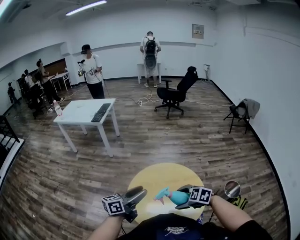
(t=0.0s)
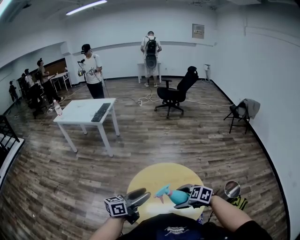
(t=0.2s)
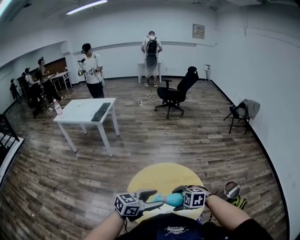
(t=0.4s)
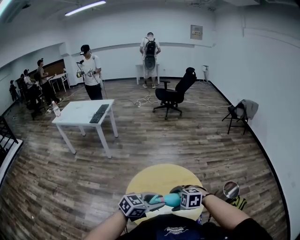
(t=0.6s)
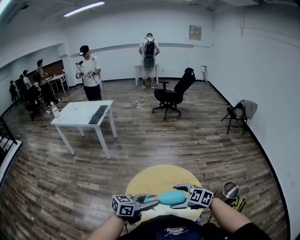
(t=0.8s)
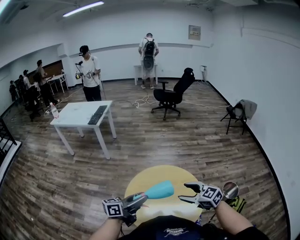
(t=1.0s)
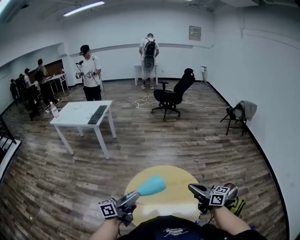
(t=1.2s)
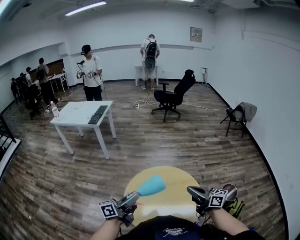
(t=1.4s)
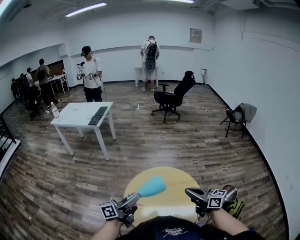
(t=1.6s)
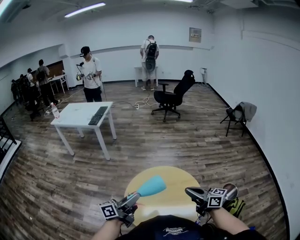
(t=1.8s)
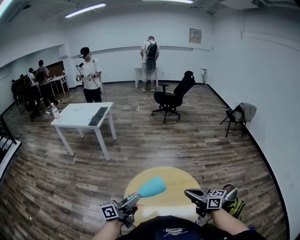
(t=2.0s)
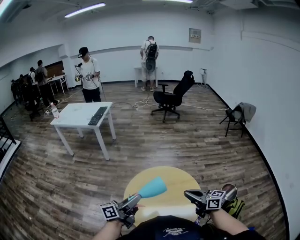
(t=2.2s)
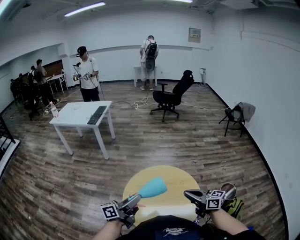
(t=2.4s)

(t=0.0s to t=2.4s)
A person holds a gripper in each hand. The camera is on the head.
t=0.0s - t=1.2s: The right gripper changes place by approximately 15 cm, tilts its fingers approximately 50 degrees upward, and closes.
t=1.2s - t=2.4s: The grippers move only a little.

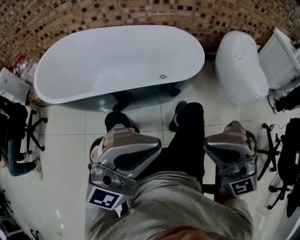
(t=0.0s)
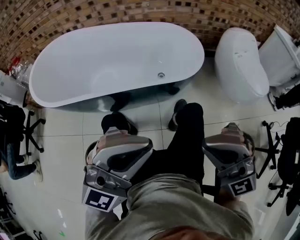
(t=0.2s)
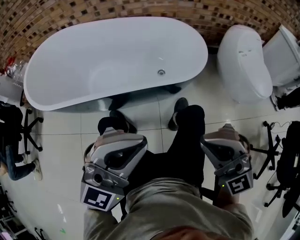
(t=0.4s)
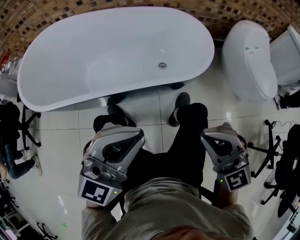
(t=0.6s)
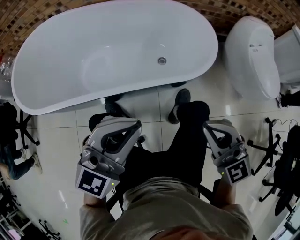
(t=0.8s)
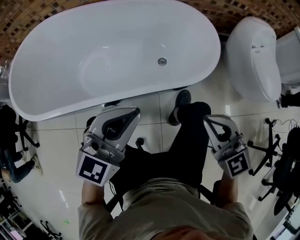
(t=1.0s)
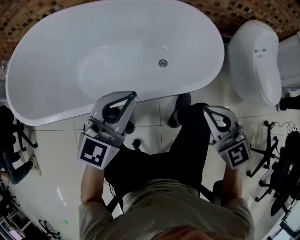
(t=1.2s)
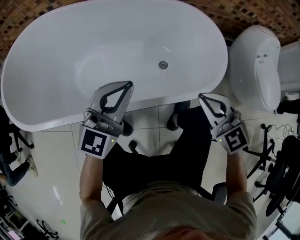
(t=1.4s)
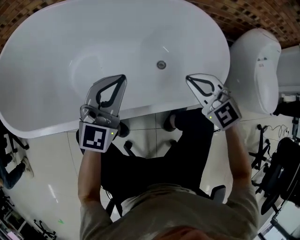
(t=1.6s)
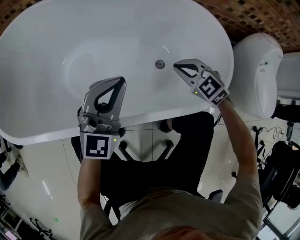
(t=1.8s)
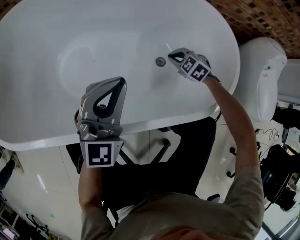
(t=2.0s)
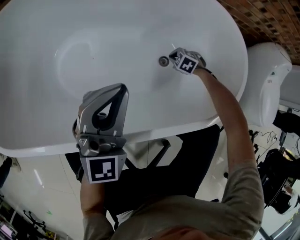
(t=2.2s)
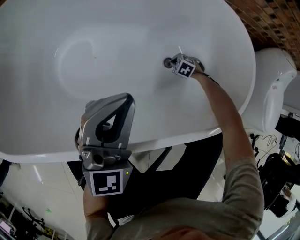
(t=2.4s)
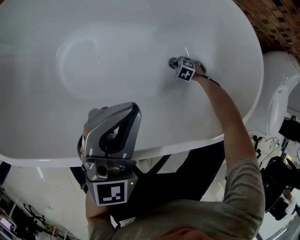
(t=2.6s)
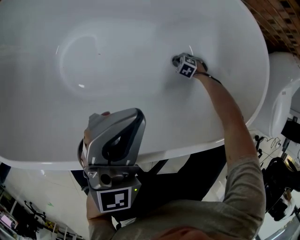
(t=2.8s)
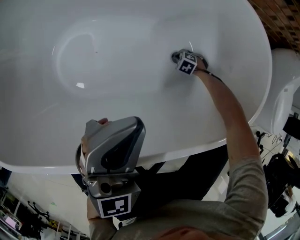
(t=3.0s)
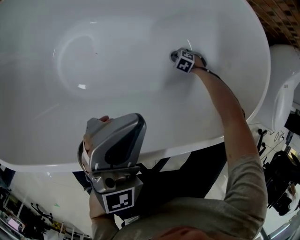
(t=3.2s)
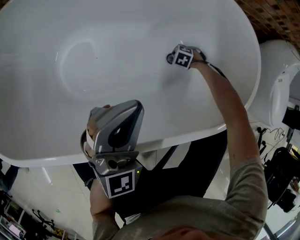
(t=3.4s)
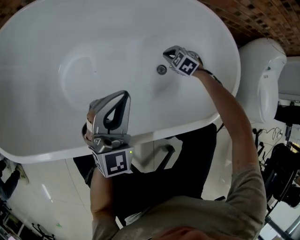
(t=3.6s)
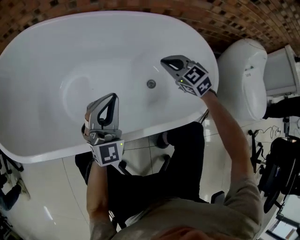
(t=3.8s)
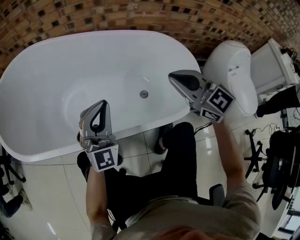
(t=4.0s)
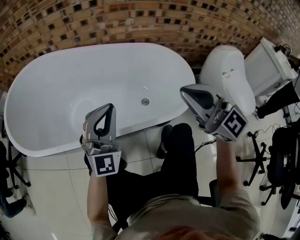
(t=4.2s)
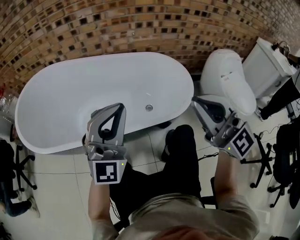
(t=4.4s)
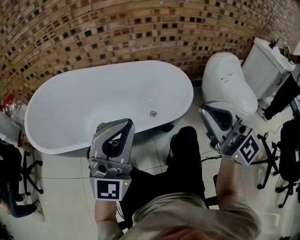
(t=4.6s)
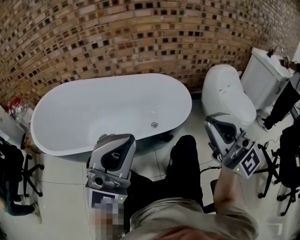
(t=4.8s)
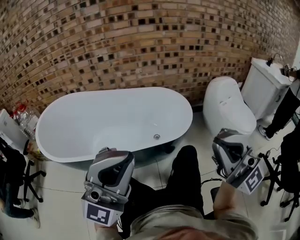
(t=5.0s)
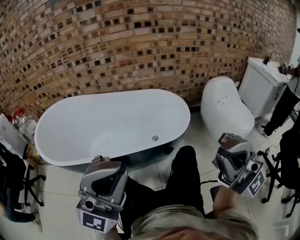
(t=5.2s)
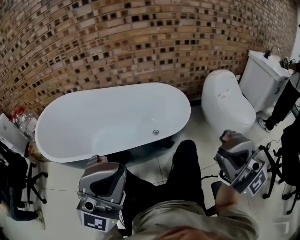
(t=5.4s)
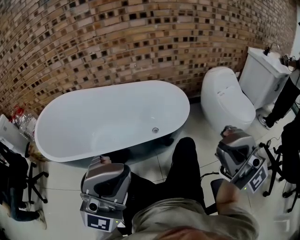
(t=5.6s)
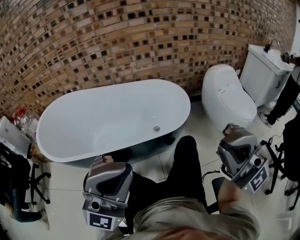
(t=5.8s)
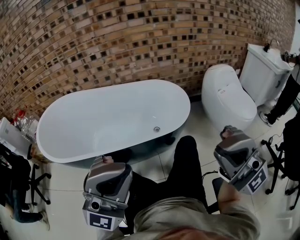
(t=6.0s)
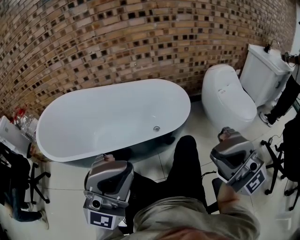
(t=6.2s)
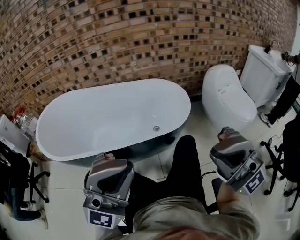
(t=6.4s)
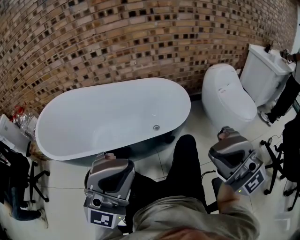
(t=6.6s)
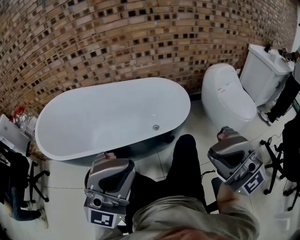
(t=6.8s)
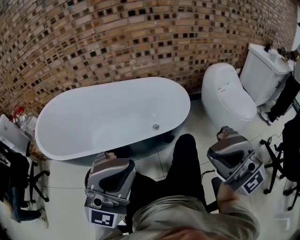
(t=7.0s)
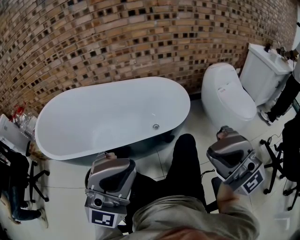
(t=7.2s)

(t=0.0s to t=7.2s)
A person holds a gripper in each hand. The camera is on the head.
t=0.0s - t=1.4s: The two grippers go some 40 cm forward and downward. The right gripper swivels roughly 40 degrees; the left gripper rotates about 30 degrees.
t=1.4s - t=2.8s: The left gripper moves some 15 cm, and swivels approximately 20 degrees, while the right gripper goes approximately 60 cm downward, and angles its fingers downward, by some 60 degrees.
t=2.8s - t=4.4s: The left gripper travels upward by roughly 25 cm, and turns by about 30 degrees. Meanwhile the right gripper heads upward, covering some 80 cm, and points its fingers roughly 90 degrees further upward.
t=4.4s - t=5.8s: The grippers both shift backward and upward by some 25 cm. The left gripper swivels about 20 degrees. The right gripper swivels roughly 30 degrees.
t=5.8s - t=7.2s: The grippers stay close to where they were, moving slightly.

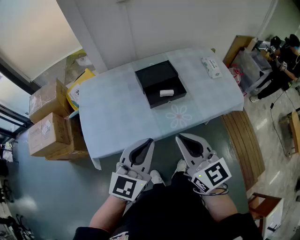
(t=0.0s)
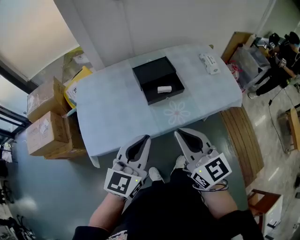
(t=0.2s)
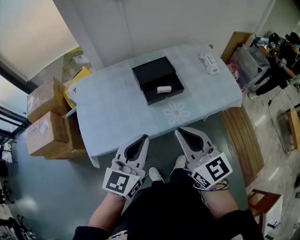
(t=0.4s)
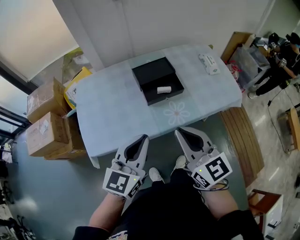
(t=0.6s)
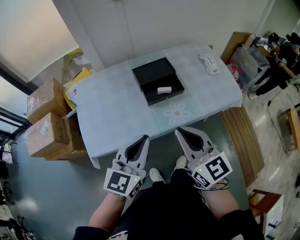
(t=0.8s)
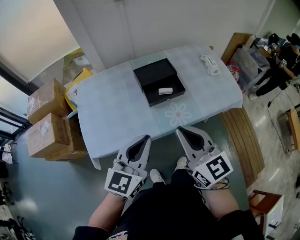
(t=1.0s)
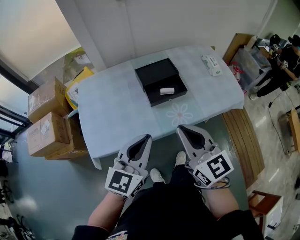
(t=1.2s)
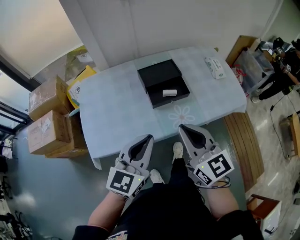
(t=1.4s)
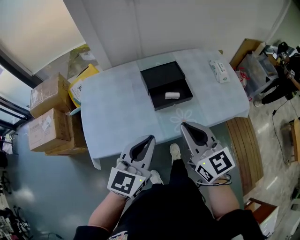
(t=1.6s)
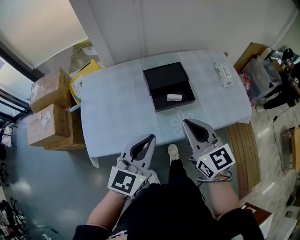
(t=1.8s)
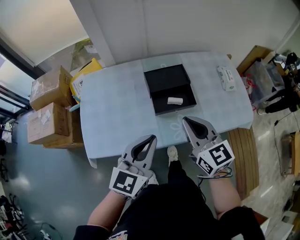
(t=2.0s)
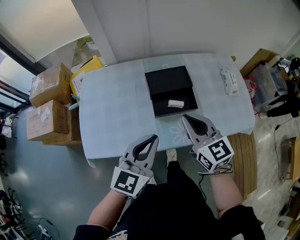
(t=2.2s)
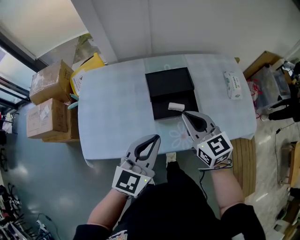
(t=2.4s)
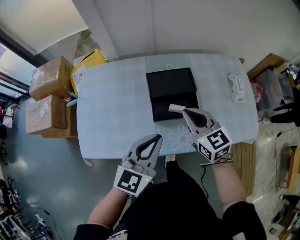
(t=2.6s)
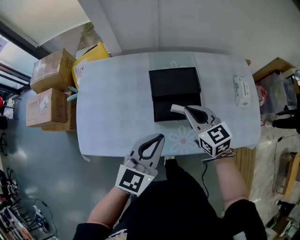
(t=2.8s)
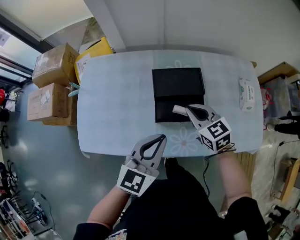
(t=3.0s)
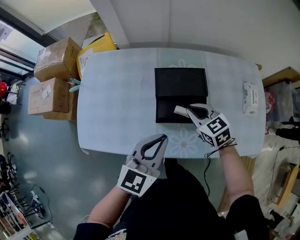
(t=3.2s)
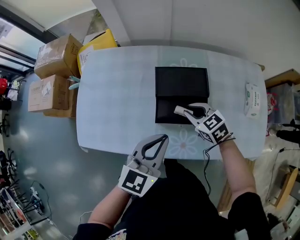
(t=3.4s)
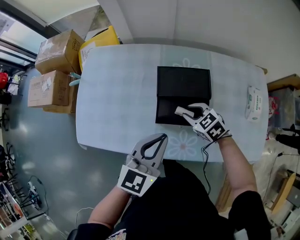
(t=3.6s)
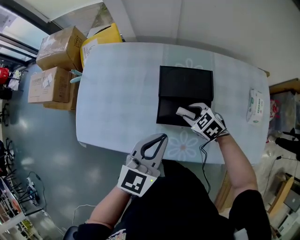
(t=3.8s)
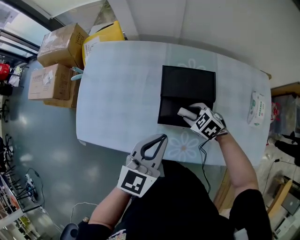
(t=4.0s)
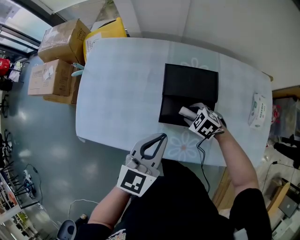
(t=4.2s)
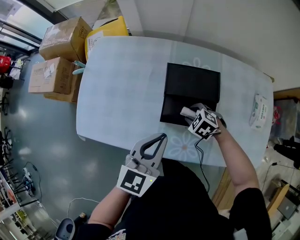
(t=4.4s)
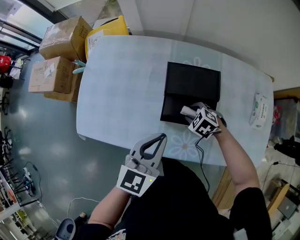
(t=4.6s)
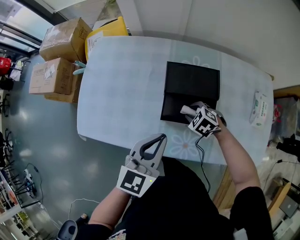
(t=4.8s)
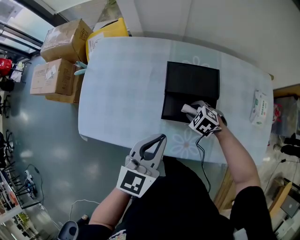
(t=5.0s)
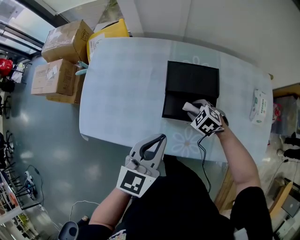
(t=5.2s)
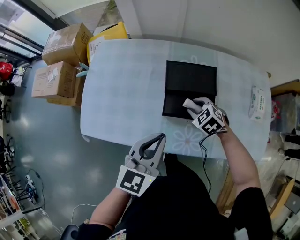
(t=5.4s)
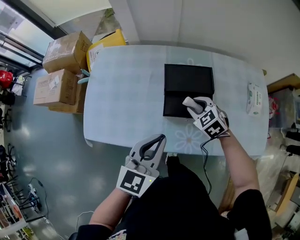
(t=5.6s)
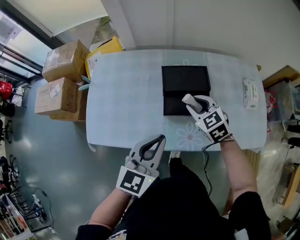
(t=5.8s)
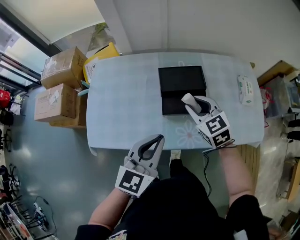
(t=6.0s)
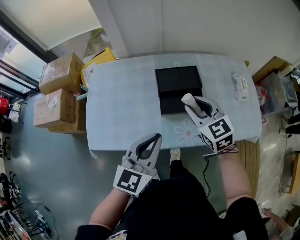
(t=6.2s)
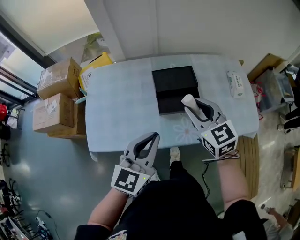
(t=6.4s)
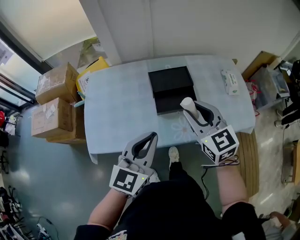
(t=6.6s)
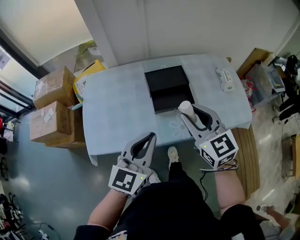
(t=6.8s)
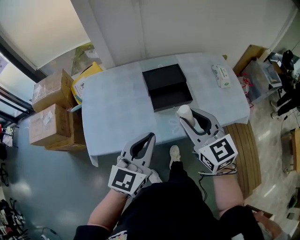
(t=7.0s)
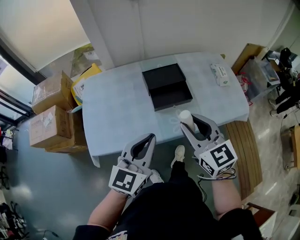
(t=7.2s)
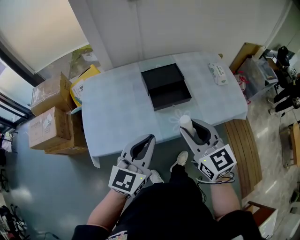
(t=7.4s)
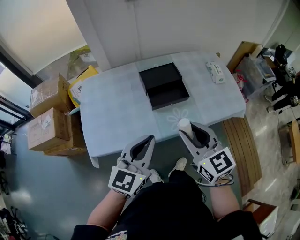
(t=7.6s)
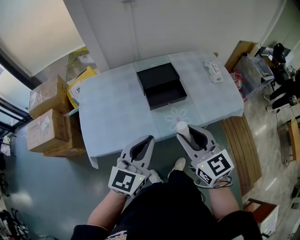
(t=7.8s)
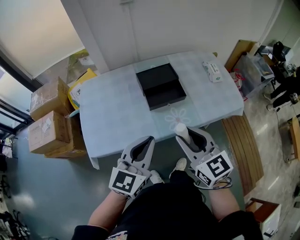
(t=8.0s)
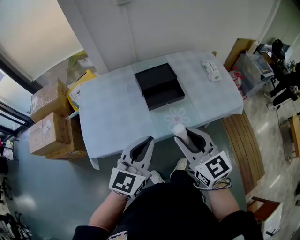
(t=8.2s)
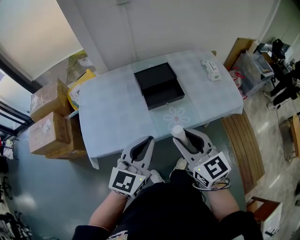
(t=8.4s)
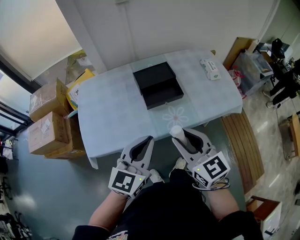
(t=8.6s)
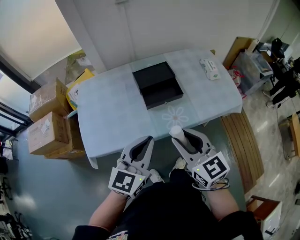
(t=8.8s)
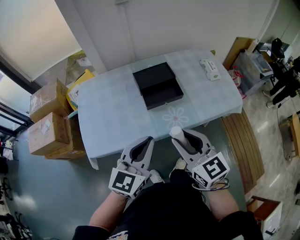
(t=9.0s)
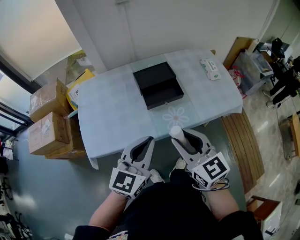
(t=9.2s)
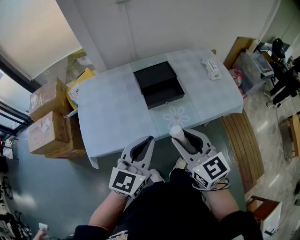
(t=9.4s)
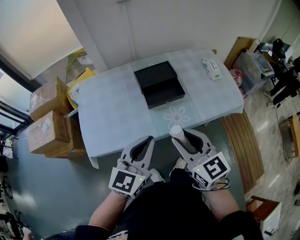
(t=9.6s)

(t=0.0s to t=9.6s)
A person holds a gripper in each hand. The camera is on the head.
t=0.0s - t=1.6s: The right gripper shifts some 10 cm forward, while the left gripper heads forward, covering roughly 5 cm.
t=1.6s - t=3.2s: The left gripper heads forward, to the right and downward, covering some 20 cm. The right gripper is displaced forward and downward by roughly 30 cm, and angles its fingers downward, by some 30 degrees.
t=3.2s - t=4.8s: The right gripper heads downward, covering roughly 15 cm, points its fingers roughly 30 degrees further downward, and opens.
t=4.8s - t=6.4s: The right gripper heads upward, covering approximately 30 cm, and tilts its fingers roughly 50 degrees upward; the left gripper ends up roughly 15 cm from where it was.
t=6.4s - t=8.0s: The left gripper moves backward, about 10 cm; the right gripper shifts some 20 cm backward.
t=8.0s - t=9.6s: Neither gripper changes place.

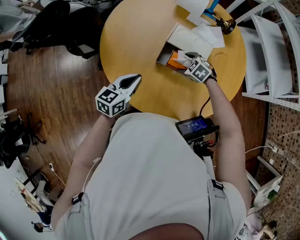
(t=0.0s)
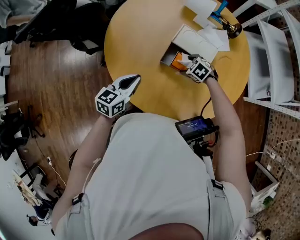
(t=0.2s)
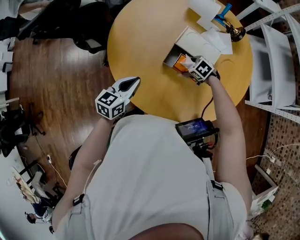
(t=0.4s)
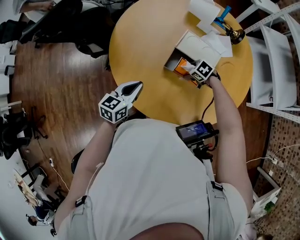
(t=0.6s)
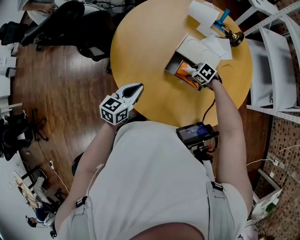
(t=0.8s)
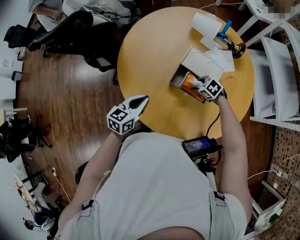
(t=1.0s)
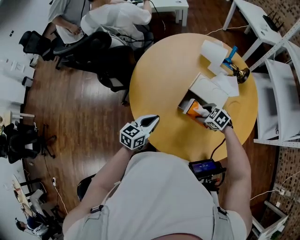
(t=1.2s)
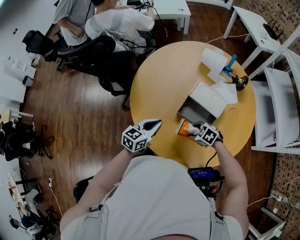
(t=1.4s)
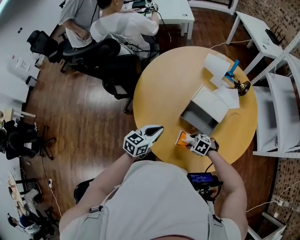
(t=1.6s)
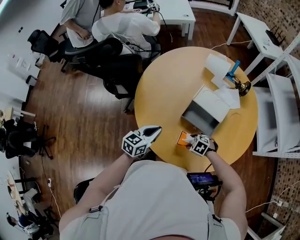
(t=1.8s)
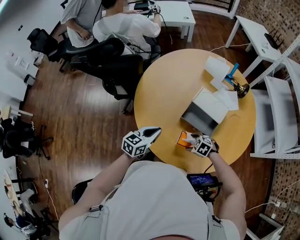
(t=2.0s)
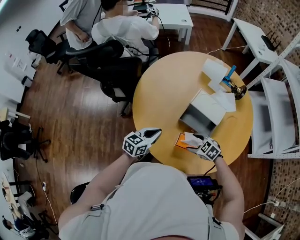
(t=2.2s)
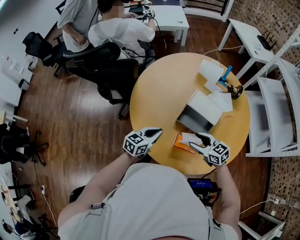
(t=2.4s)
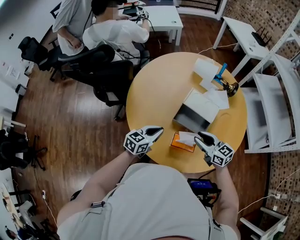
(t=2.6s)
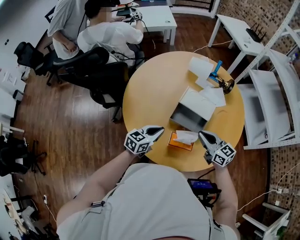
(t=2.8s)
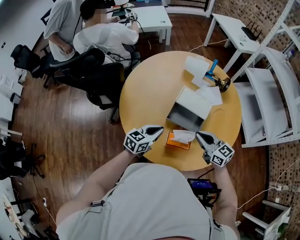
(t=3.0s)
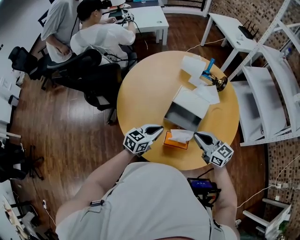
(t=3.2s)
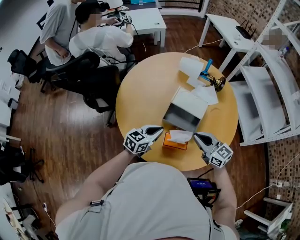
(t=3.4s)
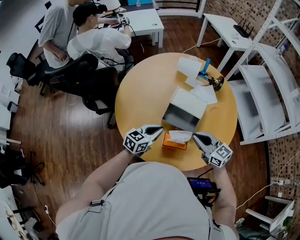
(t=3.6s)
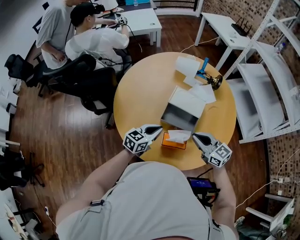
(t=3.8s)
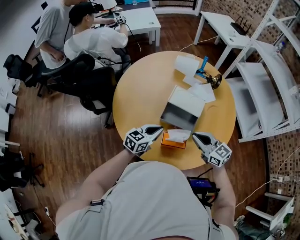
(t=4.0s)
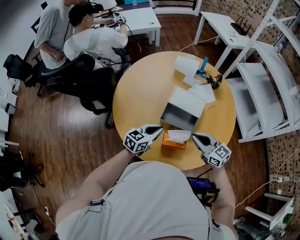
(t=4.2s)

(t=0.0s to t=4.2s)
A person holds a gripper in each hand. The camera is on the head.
t=0.0s - t=1.4s: The right gripper ends up about 15 cm from where it was.
t=1.4s - t=2.8s: The right gripper goes approximately 15 cm upward, points its fingers some 50 degrees further upward, and closes its fingers.
t=2.8s - t=4.2s: There are only small adjustments of the grippers.
